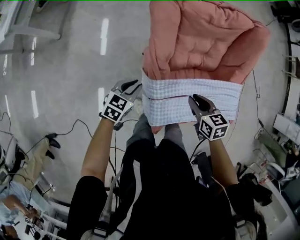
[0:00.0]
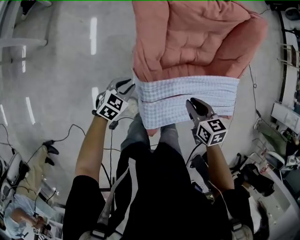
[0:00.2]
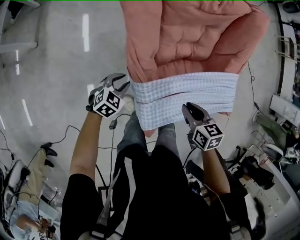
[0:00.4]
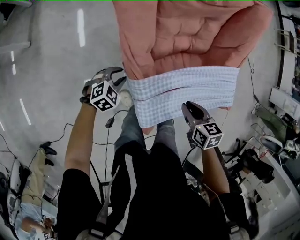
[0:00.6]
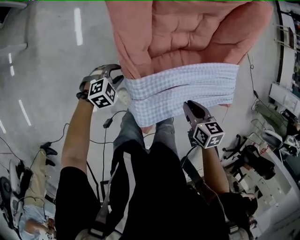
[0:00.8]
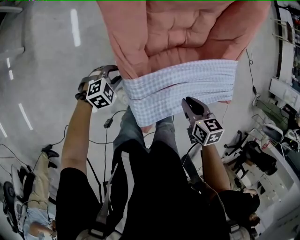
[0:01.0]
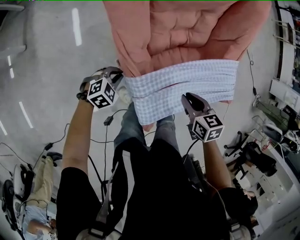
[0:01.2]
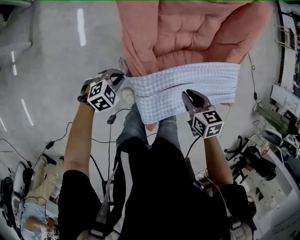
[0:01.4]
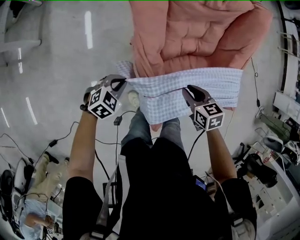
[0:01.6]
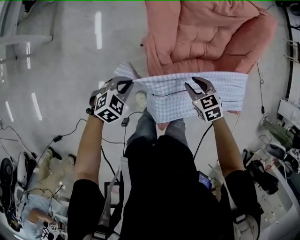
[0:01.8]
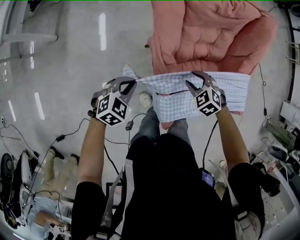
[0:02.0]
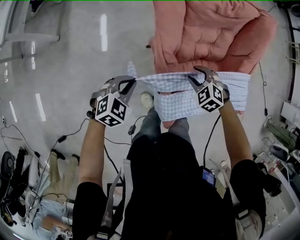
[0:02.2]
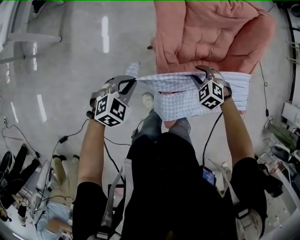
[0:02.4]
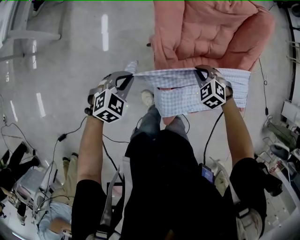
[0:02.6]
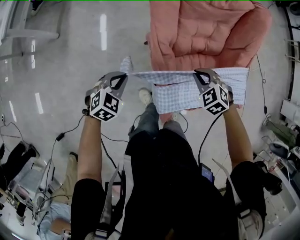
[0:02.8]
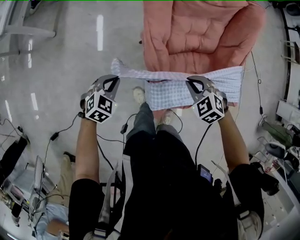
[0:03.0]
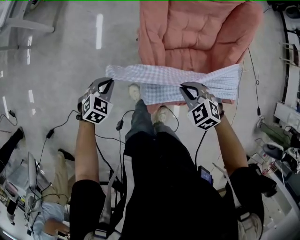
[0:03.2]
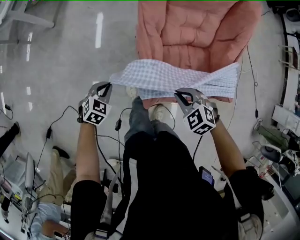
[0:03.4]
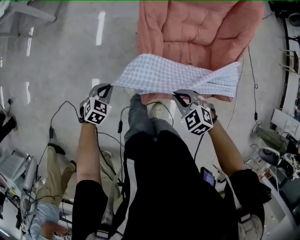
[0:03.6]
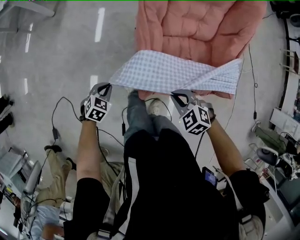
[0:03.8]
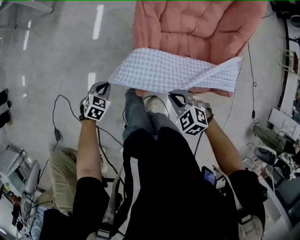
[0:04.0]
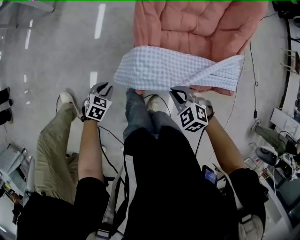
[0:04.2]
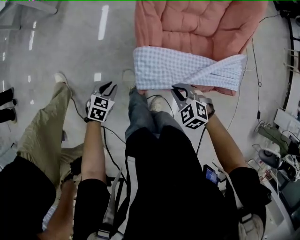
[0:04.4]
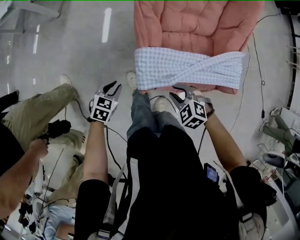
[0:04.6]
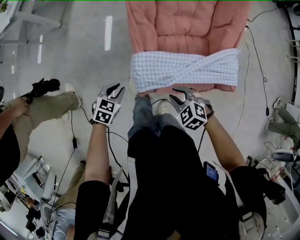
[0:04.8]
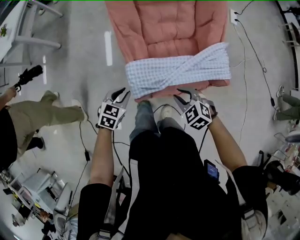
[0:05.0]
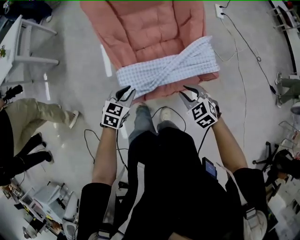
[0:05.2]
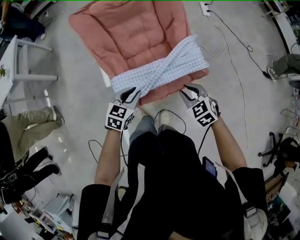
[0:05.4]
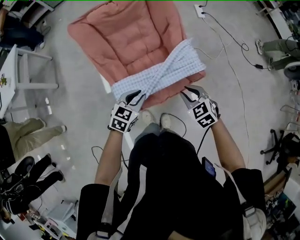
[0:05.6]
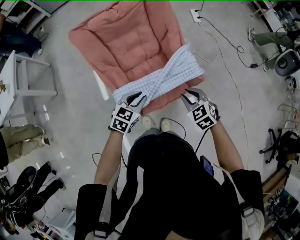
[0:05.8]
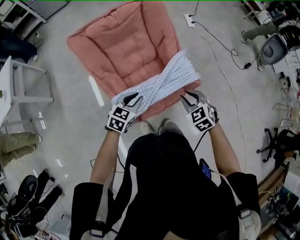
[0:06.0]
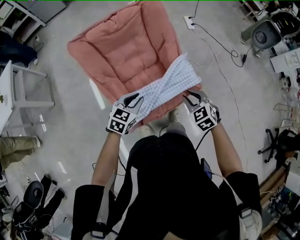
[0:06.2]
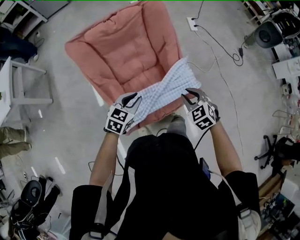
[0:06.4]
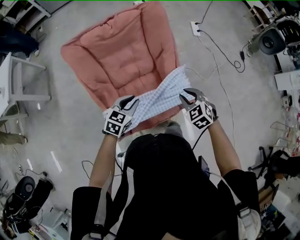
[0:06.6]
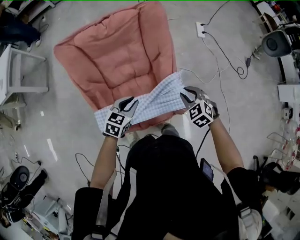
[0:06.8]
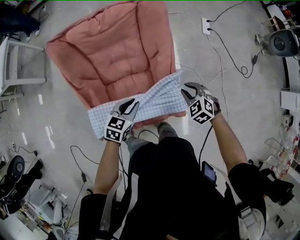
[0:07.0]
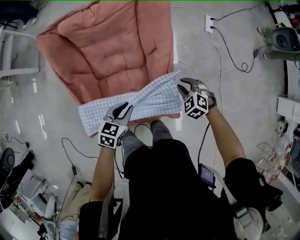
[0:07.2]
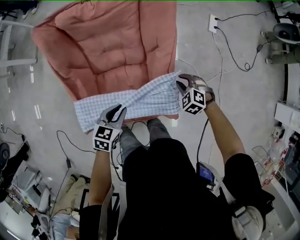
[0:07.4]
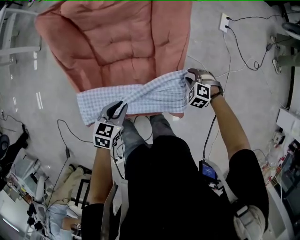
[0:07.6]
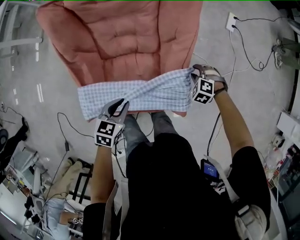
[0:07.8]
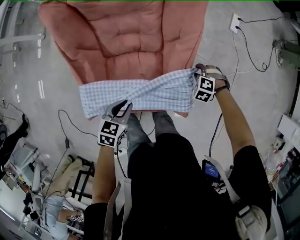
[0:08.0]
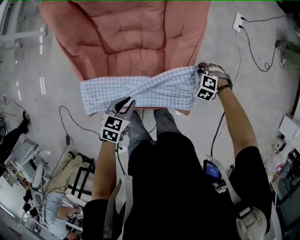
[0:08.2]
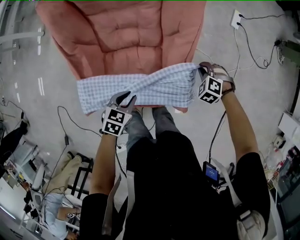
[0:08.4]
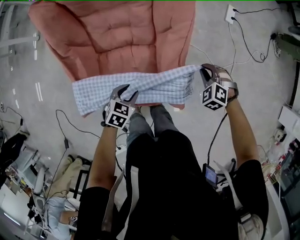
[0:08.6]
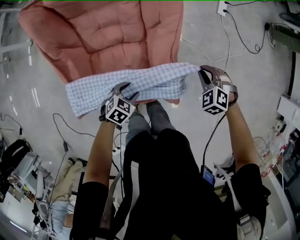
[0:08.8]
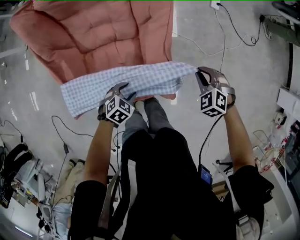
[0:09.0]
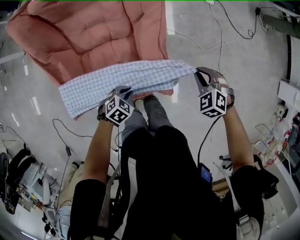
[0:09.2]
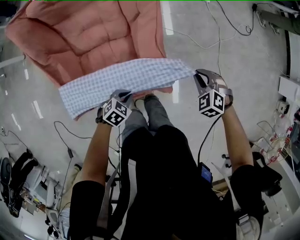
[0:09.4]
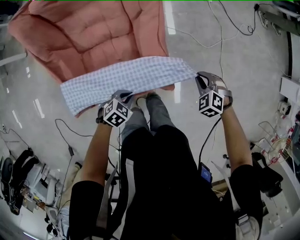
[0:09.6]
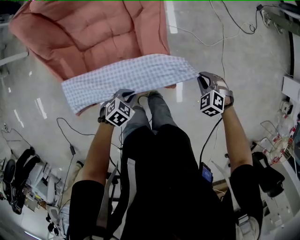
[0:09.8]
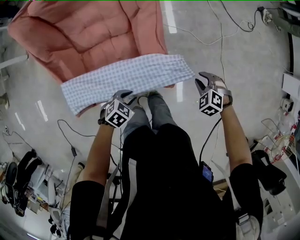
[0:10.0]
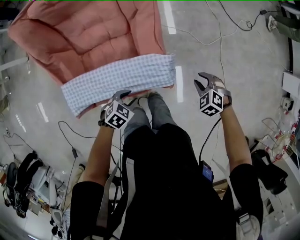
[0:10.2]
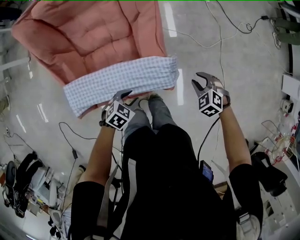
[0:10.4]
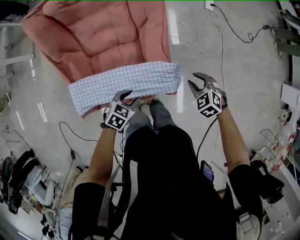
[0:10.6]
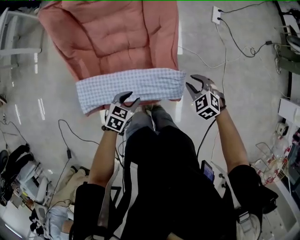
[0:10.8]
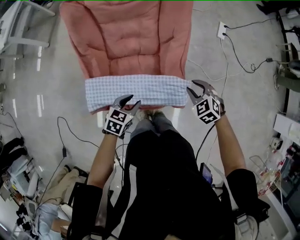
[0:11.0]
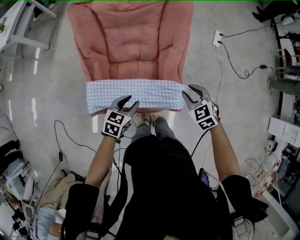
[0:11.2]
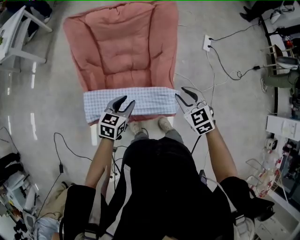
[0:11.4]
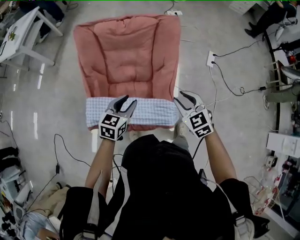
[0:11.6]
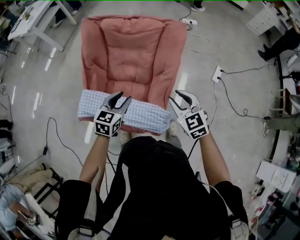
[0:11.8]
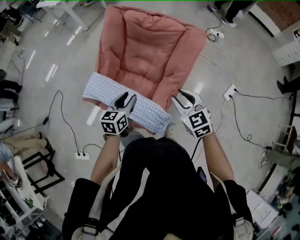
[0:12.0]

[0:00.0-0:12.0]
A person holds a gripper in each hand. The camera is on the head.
0:00.0 to 0:01.6: Both grippers travel together downward, about 5 cm. The left gripper changes its angle by approximately 30 degrees, while the right gripper goes to the right and returns, about 10 cm each way.
0:01.6 to 0:03.0: Both grippers move backward and upward, about 10 cm. The right gripper twists about 50 degrees counterclockwise, seen from behind.
0:03.0 to 0:04.4: The right gripper moves backward, about 20 cm; the left gripper goes approximately 25 cm backward and downward, and swivels roughly 30 degrees.
0:04.4 to 0:06.0: The left gripper changes place by some 40 cm, and rotates about 40 degrees; the right gripper ends up approximately 30 cm from where it was, and rotates approximately 50 degrees.
0:06.0 to 0:07.6: The right gripper heads forward, downward and to the right, covering roughly 40 cm, and rotates around the line of its fingers by about 50 degrees, counterclockwise from behind; the left gripper shifts approximately 20 cm to the right, downward and forward, and changes its angle by approximately 40 degrees.
0:07.6 to 0:09.0: The right gripper changes place by about 15 cm. Meanwhile the left gripper travels downward by roughly 15 cm, and turns by approximately 40 degrees.
0:09.0 to 0:10.4: The left gripper moves to the right, some 5 cm, and closes and opens again, while the right gripper moves to the right and backward, some 10 cm.
0:10.4 to 0:12.0: Both grippers travel together upward, about 25 cm. The right gripper tips its fingers upward by about 40 degrees. The left gripper points its fingers roughly 30 degrees further upward.

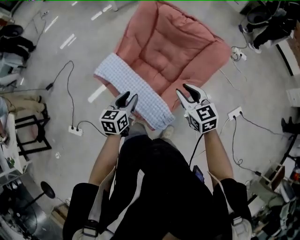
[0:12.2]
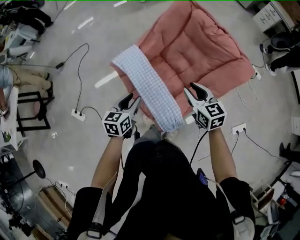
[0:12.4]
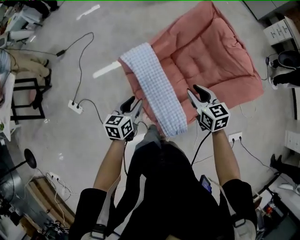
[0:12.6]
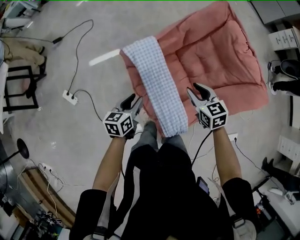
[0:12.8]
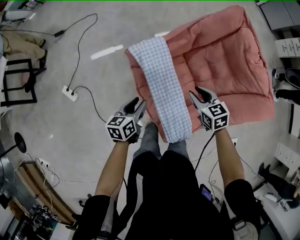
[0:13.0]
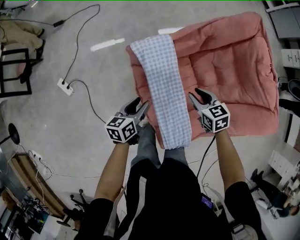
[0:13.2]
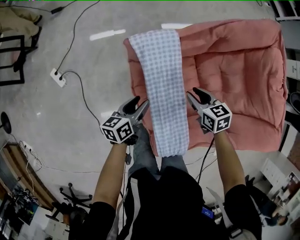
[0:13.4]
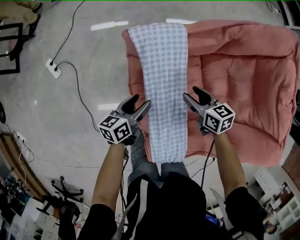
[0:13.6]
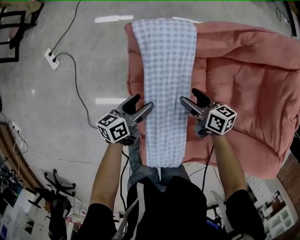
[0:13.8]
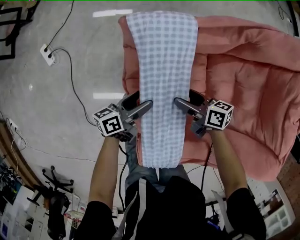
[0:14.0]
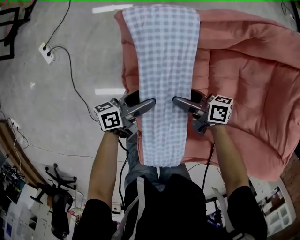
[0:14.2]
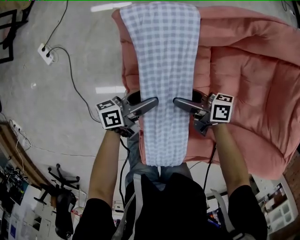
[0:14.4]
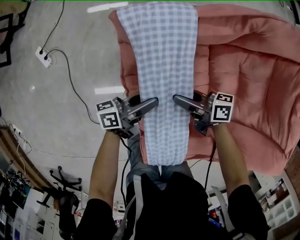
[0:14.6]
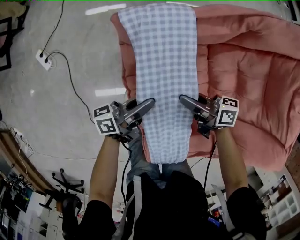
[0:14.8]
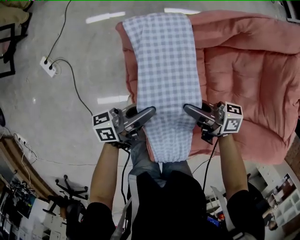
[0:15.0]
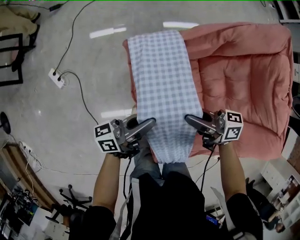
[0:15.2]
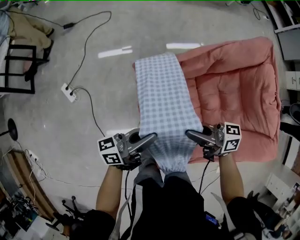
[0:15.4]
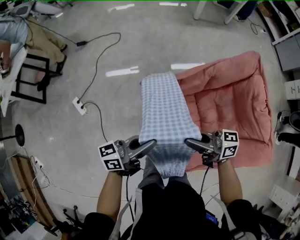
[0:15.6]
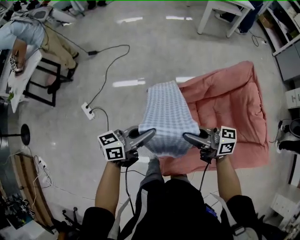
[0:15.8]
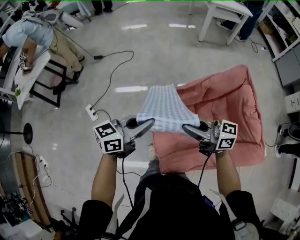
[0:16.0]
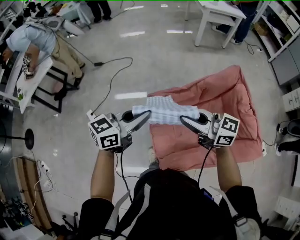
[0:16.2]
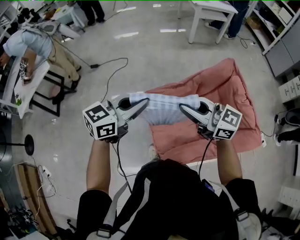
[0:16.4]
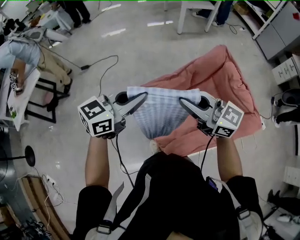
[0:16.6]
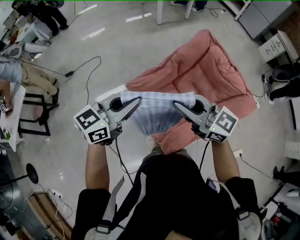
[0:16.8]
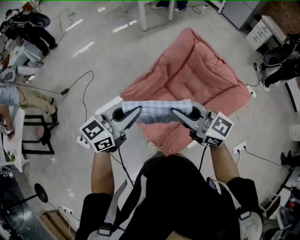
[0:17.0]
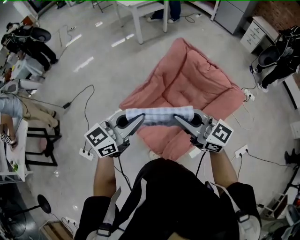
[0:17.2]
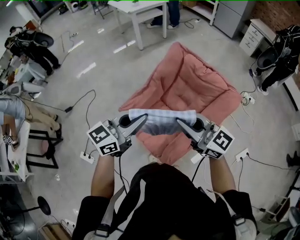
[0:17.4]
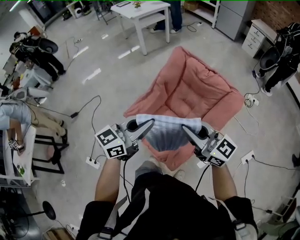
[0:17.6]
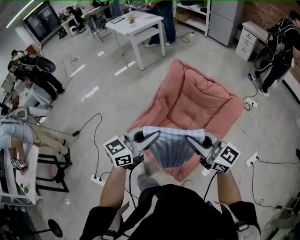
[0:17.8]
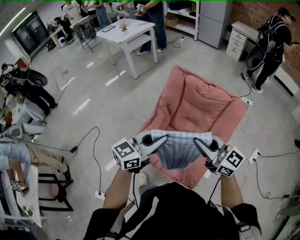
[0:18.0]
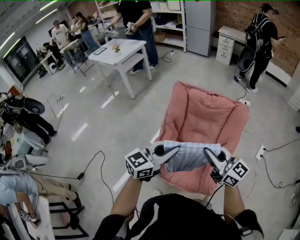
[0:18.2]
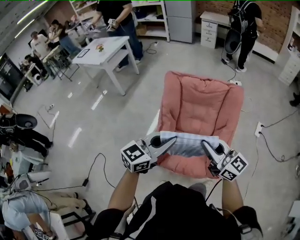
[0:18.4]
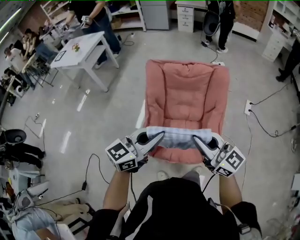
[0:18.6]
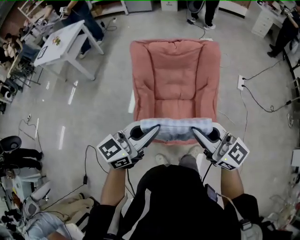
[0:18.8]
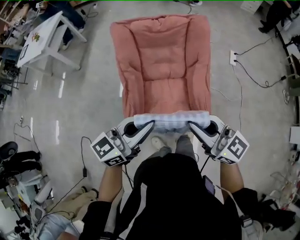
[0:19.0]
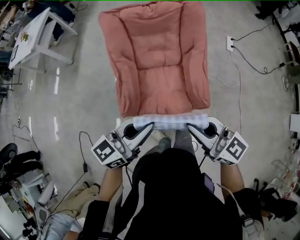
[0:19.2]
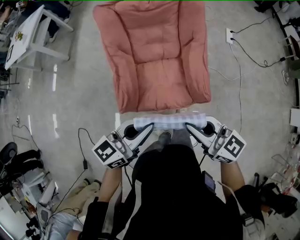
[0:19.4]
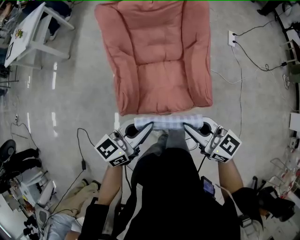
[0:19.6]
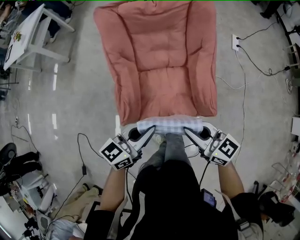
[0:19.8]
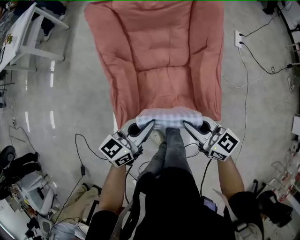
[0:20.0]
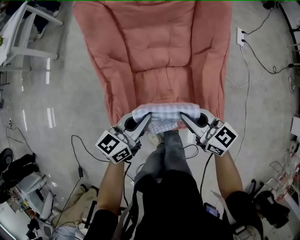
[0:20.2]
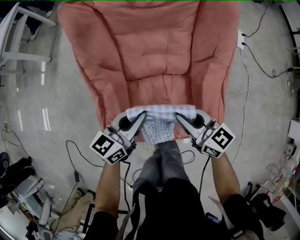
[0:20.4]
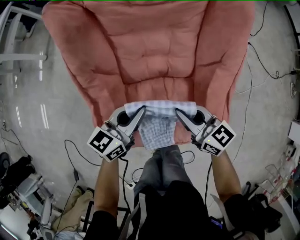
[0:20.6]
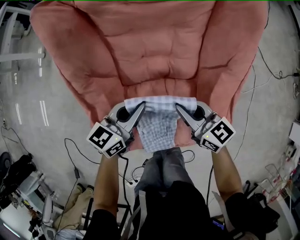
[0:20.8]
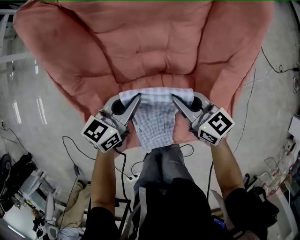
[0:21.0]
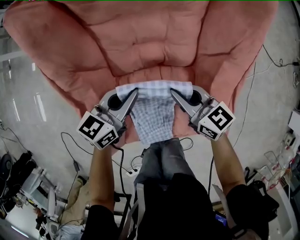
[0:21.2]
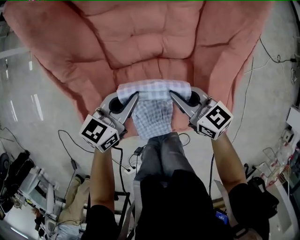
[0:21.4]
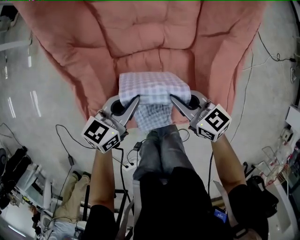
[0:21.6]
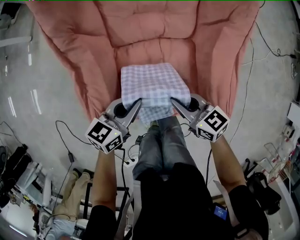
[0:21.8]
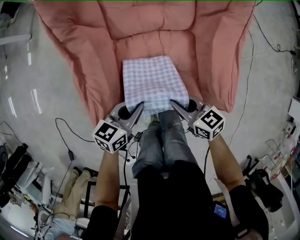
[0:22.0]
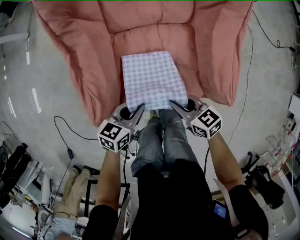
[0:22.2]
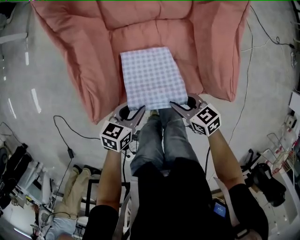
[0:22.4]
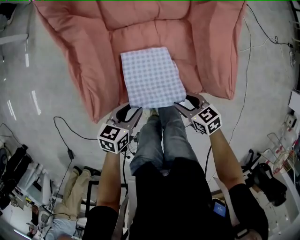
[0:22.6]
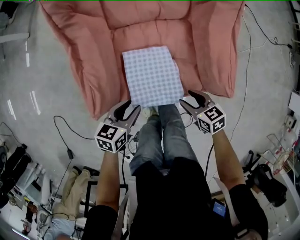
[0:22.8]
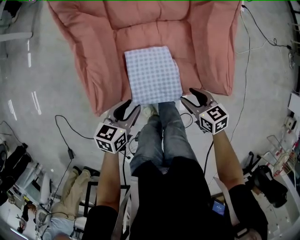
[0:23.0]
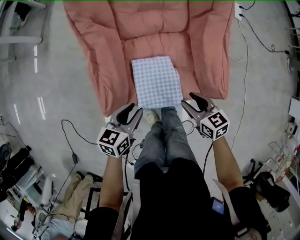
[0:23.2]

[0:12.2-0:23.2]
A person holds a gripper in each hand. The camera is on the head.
0:12.2 to 0:13.8: The two grippers go some 35 cm downward. The right gripper changes its angle by some 50 degrees, and opens its fingers. Meanwhile the left gripper rolls counterclockwise, seen from behind, by some 50 degrees, and opens its fingers.
0:13.8 to 0:15.4: Both grippers move upward, some 25 cm. The left gripper tips its fingers upward by about 30 degrees, and closes up; the right gripper tips its fingers upward by approximately 30 degrees, and closes.
0:15.4 to 0:17.0: Both grippers travel together upward, some 30 cm. The left gripper rotates around the line of its fingers by about 40 degrees, clockwise from behind. Meanwhile the right gripper twists roughly 50 degrees counterclockwise, seen from behind.
0:17.0 to 0:18.4: The right gripper shifts by approximately 10 cm, and changes its angle by approximately 50 degrees; the left gripper moves some 10 cm, and rotates about 40 degrees.
0:18.4 to 0:20.0: Both grippers travel together downward, about 25 cm. The left gripper turns by approximately 30 degrees, while the right gripper swivels approximately 30 degrees.
0:20.0 to 0:21.6: The two grippers go roughly 25 cm downward and forward.
0:21.6 to 0:23.2: Both grippers travel together backward, about 15 cm. The right gripper opens up.
